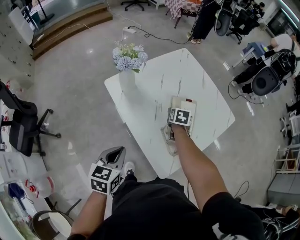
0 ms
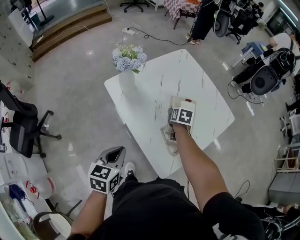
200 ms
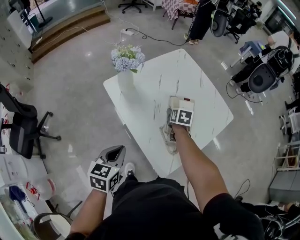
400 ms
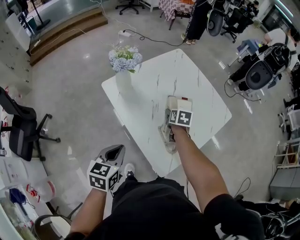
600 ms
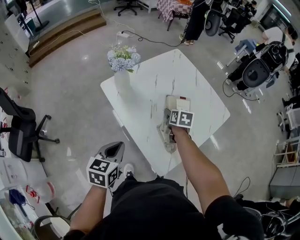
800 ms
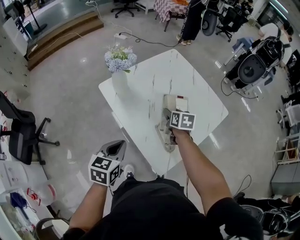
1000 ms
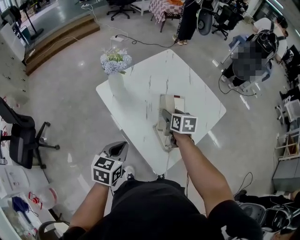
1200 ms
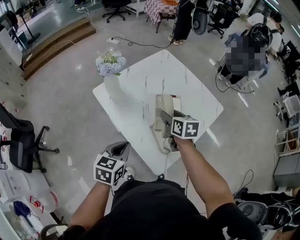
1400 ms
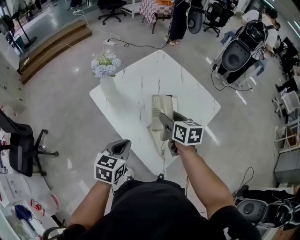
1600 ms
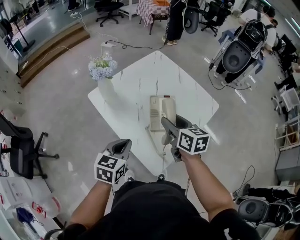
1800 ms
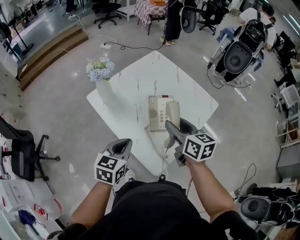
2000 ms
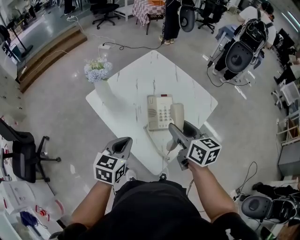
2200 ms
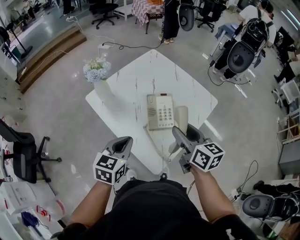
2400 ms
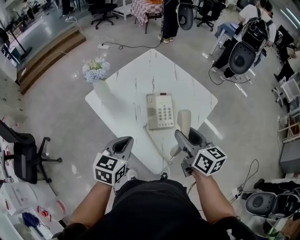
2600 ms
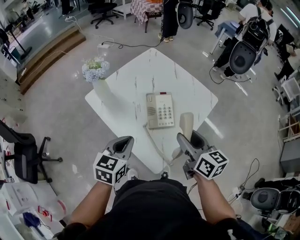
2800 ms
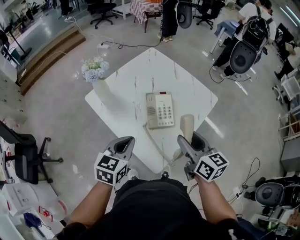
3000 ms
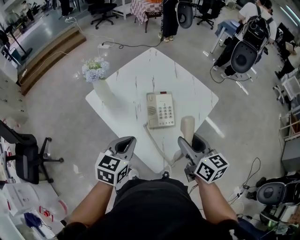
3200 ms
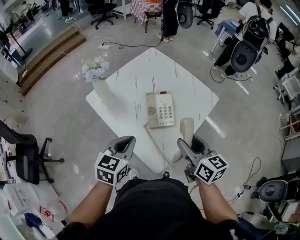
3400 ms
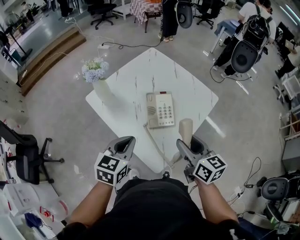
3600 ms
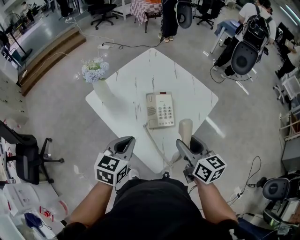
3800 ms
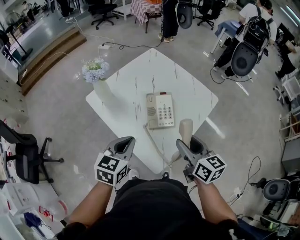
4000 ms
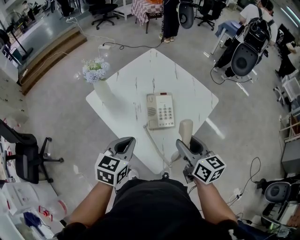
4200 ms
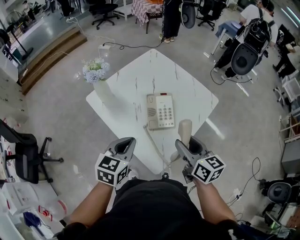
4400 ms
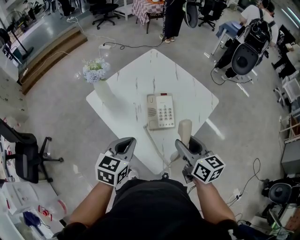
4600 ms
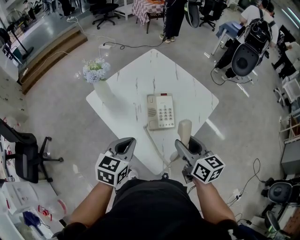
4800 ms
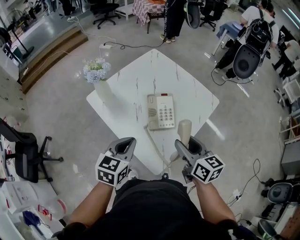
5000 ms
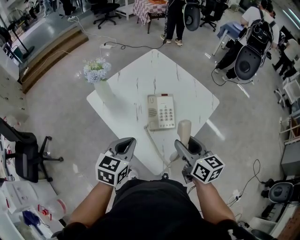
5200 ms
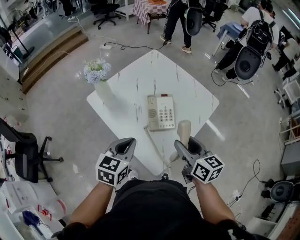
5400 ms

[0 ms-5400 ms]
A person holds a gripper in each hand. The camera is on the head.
0 ms to 1400 ms: The left gripper is displaced to the right by roughly 5 cm. The right gripper shifts about 15 cm upward and backward, and swivels about 20 degrees.
1400 ms to 2800 ms: The left gripper moves to the right, some 5 cm. The right gripper moves backward, upward and to the right, some 20 cm, and changes its angle by roughly 20 degrees.
2800 ms to 4000 ms: There are only small adjustments of the grippers.
4000 ms to 5400 ms: Both grippers stay about where they are.

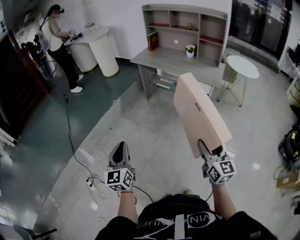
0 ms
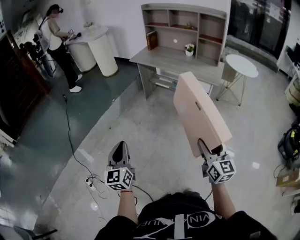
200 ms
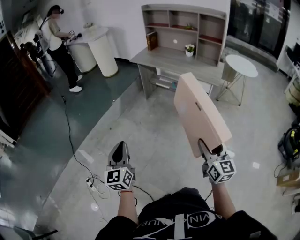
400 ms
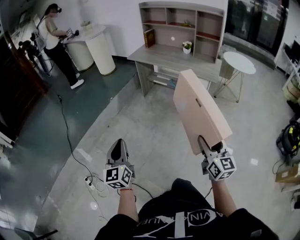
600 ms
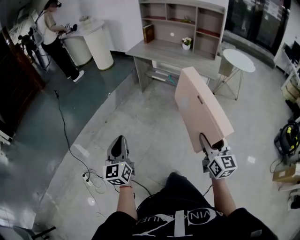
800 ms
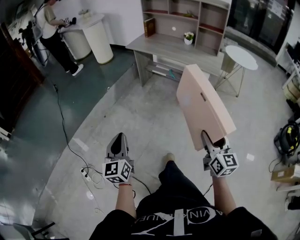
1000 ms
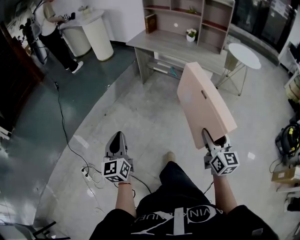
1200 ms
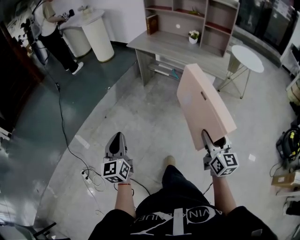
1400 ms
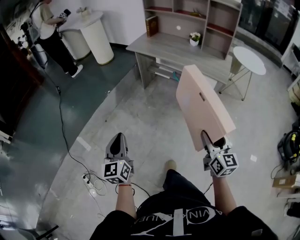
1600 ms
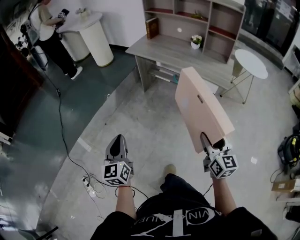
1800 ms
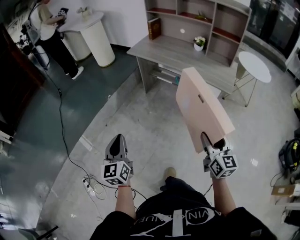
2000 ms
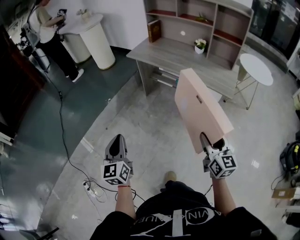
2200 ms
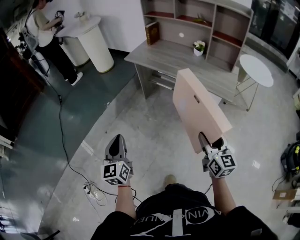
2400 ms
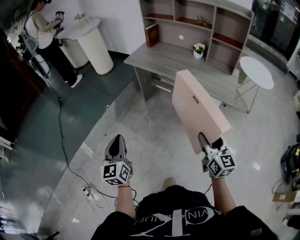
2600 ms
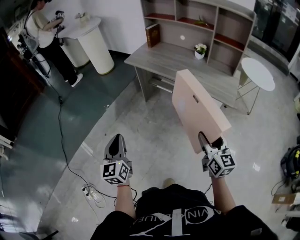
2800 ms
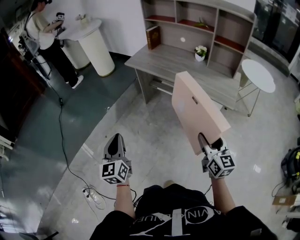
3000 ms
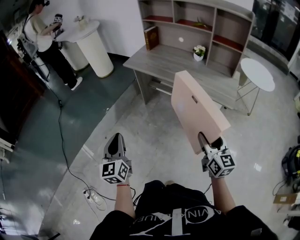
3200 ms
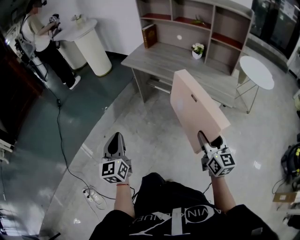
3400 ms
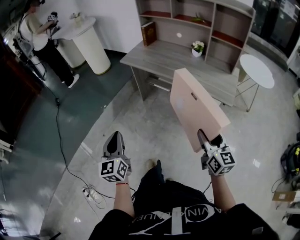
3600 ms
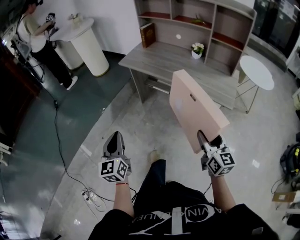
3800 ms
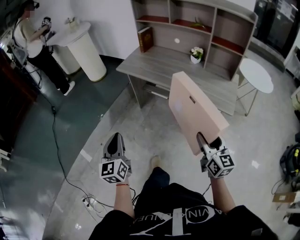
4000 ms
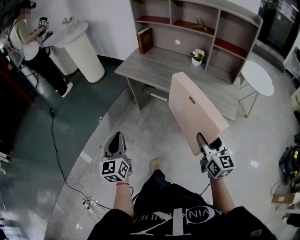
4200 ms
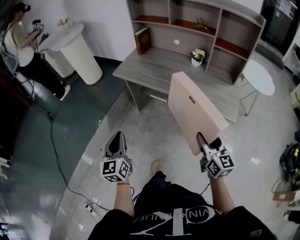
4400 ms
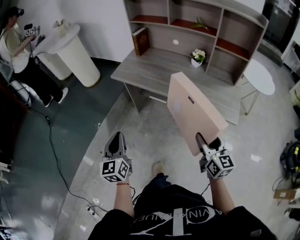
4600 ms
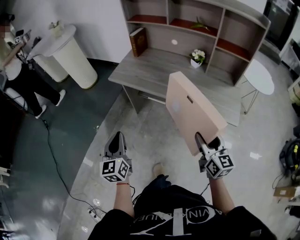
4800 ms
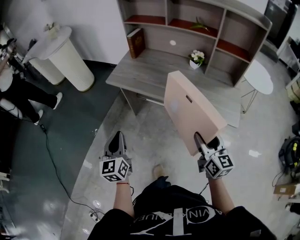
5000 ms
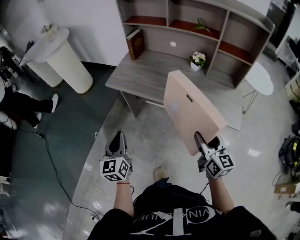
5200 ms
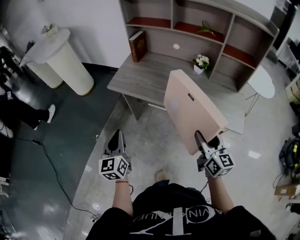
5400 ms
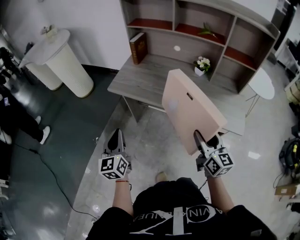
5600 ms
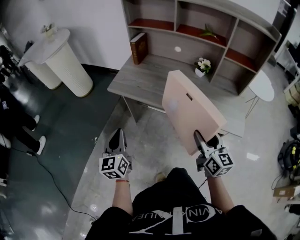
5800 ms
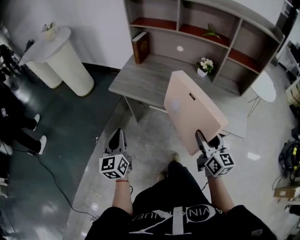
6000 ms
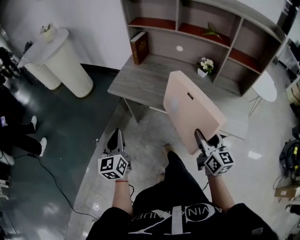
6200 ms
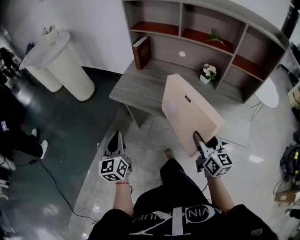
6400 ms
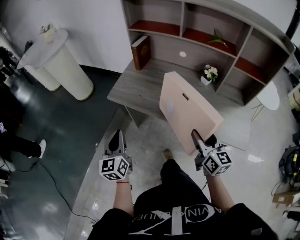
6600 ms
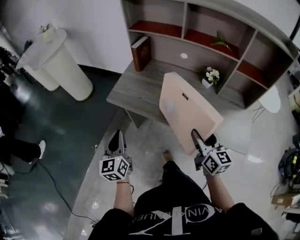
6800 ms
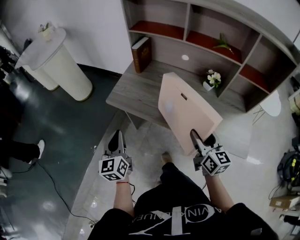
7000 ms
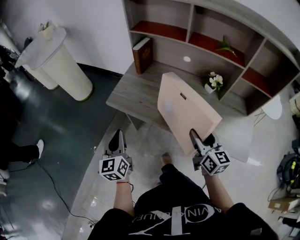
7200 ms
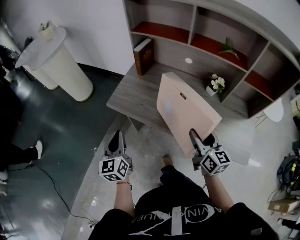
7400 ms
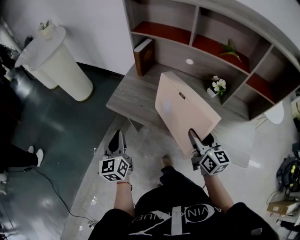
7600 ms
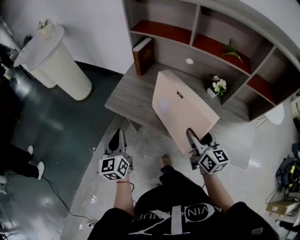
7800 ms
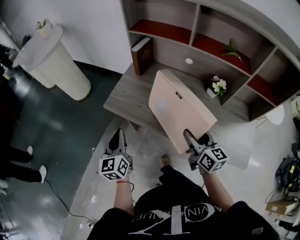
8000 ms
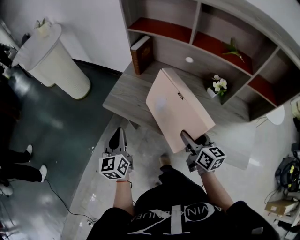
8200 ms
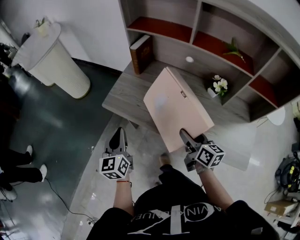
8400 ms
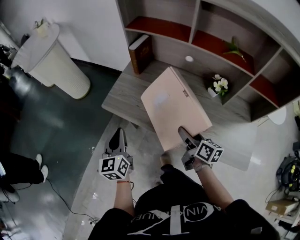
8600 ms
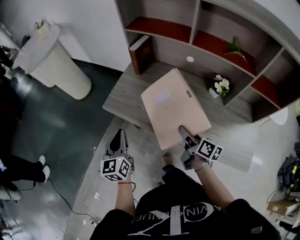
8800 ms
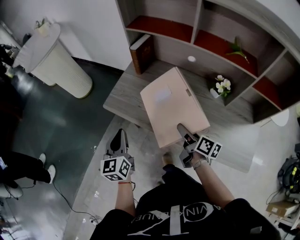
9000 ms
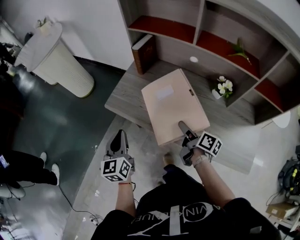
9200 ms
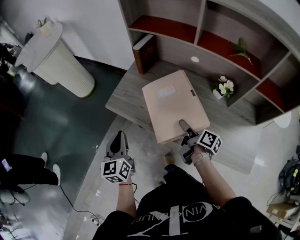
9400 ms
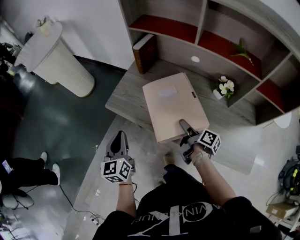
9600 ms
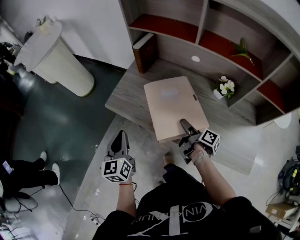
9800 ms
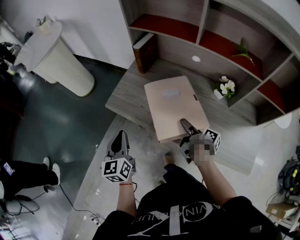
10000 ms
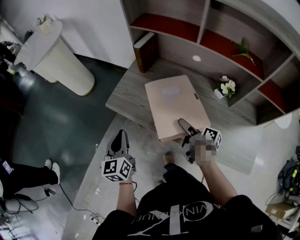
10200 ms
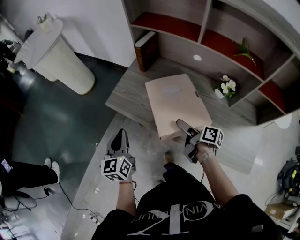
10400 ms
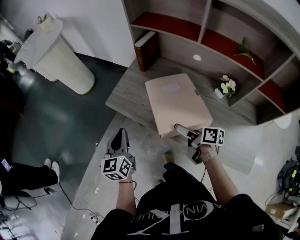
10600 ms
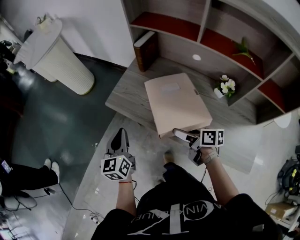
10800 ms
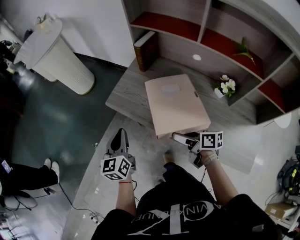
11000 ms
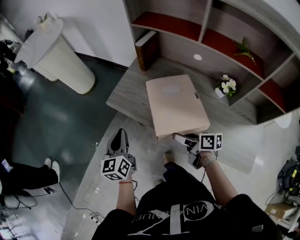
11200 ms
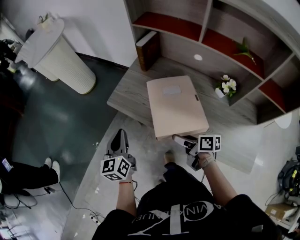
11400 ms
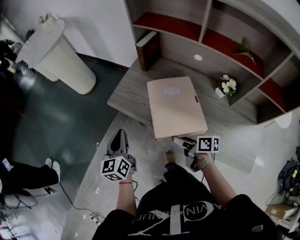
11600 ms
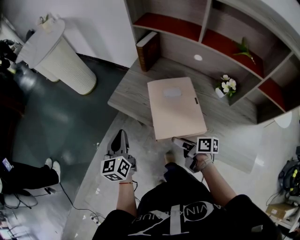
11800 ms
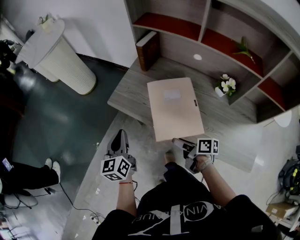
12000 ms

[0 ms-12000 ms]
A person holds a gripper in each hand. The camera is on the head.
0 ms to 1600 ms: The two grippers go about 10 cm forward.
1600 ms to 3000 ms: The two grippers go about 20 cm forward.
3000 ms to 4400 ms: The two grippers go approximately 15 cm forward.
4400 ms to 6000 ms: The grippers both shift forward by about 20 cm.
6000 ms to 7600 ms: Both grippers move forward, about 20 cm.
7600 ms to 9000 ms: The right gripper heads downward and forward, covering some 10 cm, and changes its angle by roughly 40 degrees.
9000 ms to 10400 ms: The right gripper opens.
10400 ms to 12000 ms: The right gripper goes about 10 cm to the left and backward.

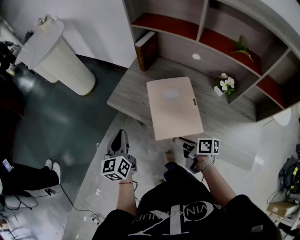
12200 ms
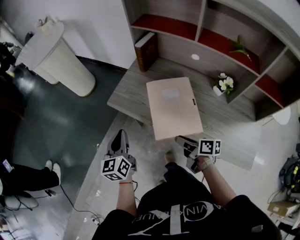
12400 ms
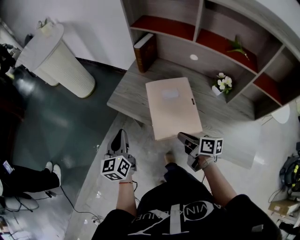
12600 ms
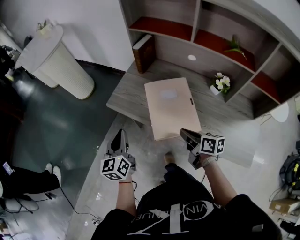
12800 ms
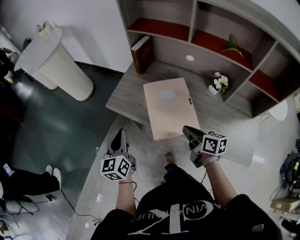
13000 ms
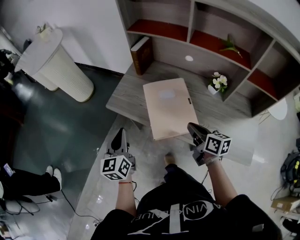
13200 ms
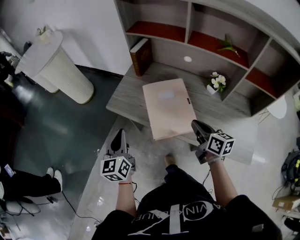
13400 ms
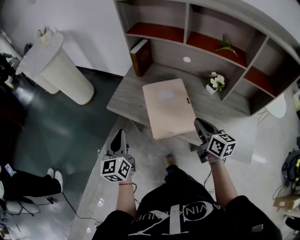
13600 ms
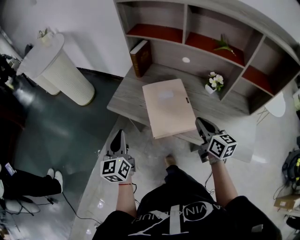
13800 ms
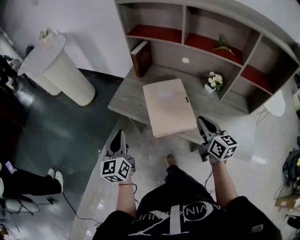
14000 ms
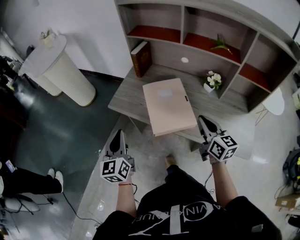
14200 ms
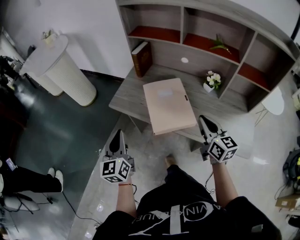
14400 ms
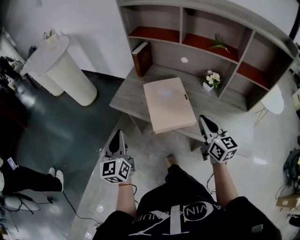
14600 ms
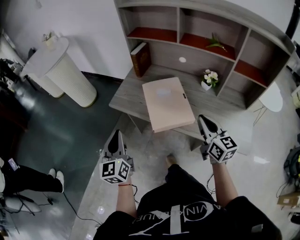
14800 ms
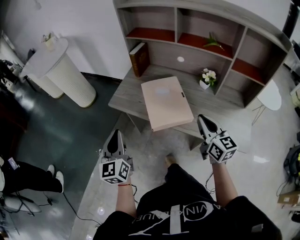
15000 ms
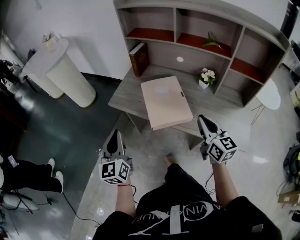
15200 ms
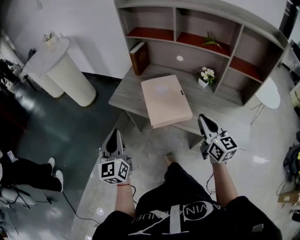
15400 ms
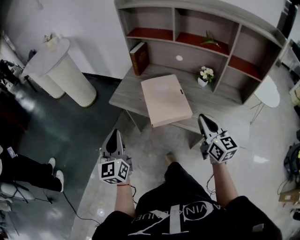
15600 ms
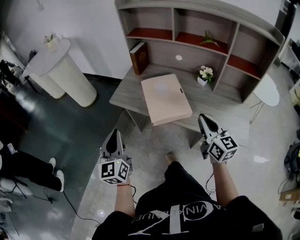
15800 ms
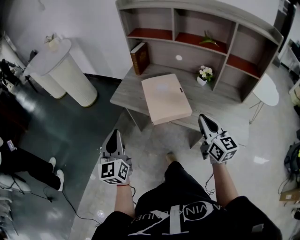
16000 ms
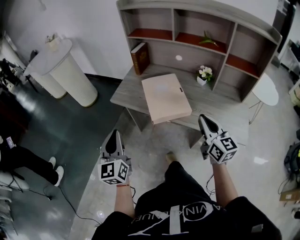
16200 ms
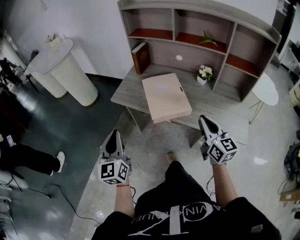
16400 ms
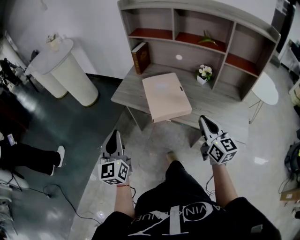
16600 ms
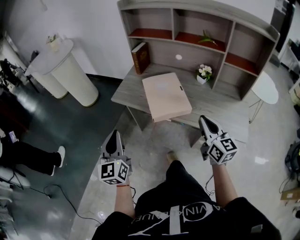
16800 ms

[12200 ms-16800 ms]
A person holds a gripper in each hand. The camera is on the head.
12200 ms to 13800 ms: The left gripper is displaced upward by approximately 5 cm. Meanwhile the right gripper moves upward and to the right, some 15 cm, rotates roughly 50 degrees, and closes up.
13800 ms to 15200 ms: The right gripper heads backward and upward, covering approximately 10 cm. Meanwhile the left gripper goes approximately 10 cm backward.
15200 ms to 16800 ms: Both grippers move backward, roughly 5 cm.

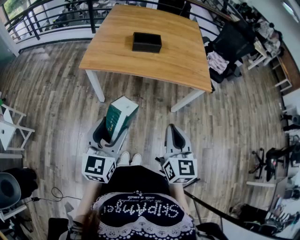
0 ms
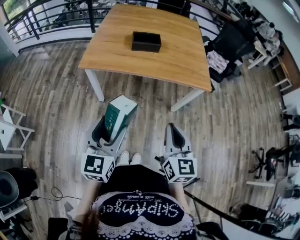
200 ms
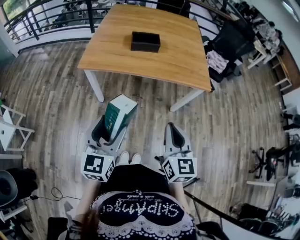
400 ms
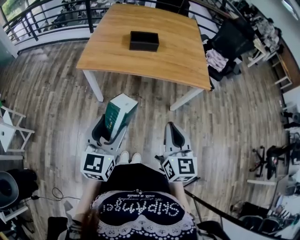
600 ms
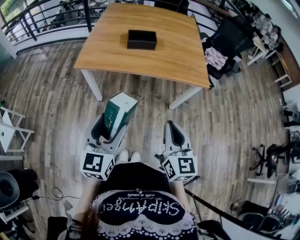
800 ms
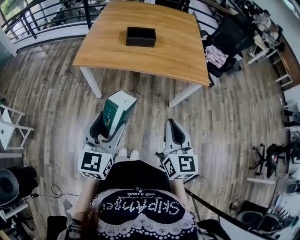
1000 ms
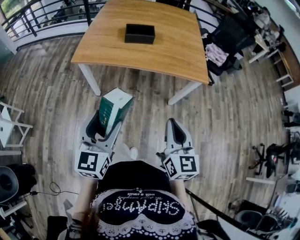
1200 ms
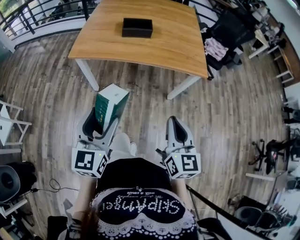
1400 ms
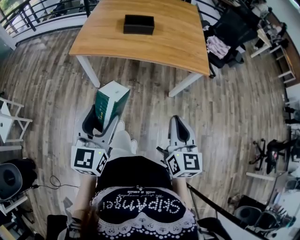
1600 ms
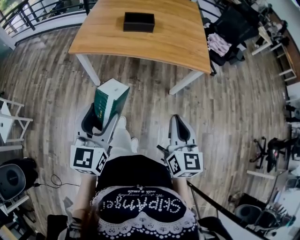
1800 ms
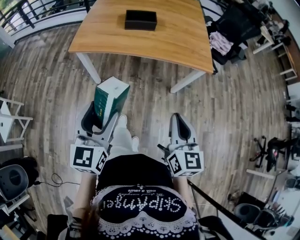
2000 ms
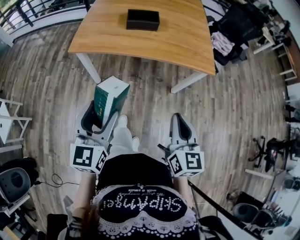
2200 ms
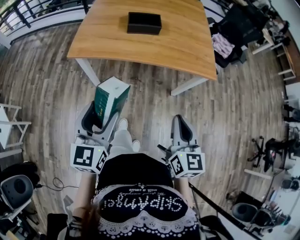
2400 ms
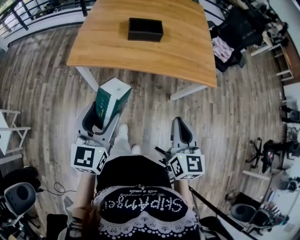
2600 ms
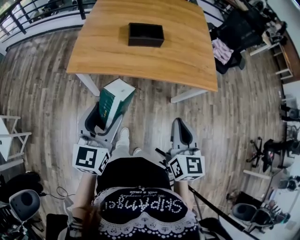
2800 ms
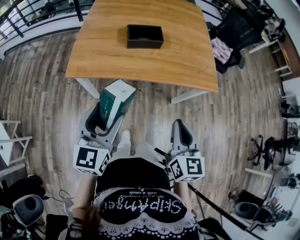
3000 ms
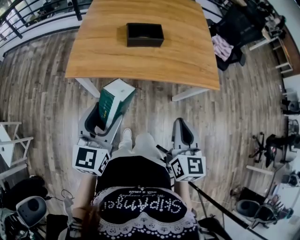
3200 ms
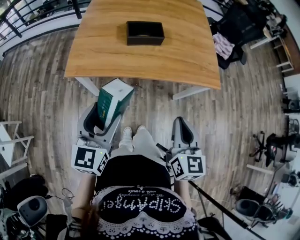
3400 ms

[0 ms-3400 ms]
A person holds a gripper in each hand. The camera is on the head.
0 ms to 1600 ms: The right gripper is displaced to the right by some 5 cm.
1600 ms to 3400 ms: Both grippers travel together forward and to the left, roughly 20 cm.
